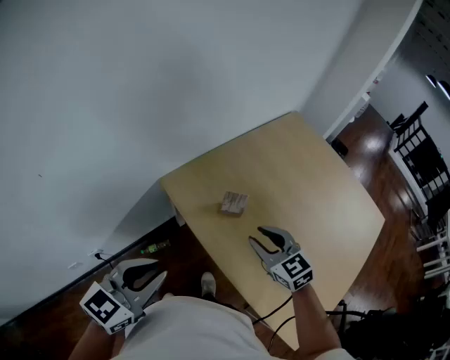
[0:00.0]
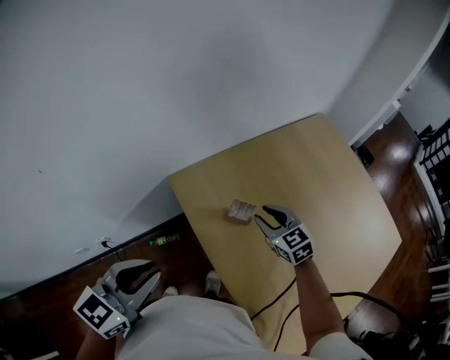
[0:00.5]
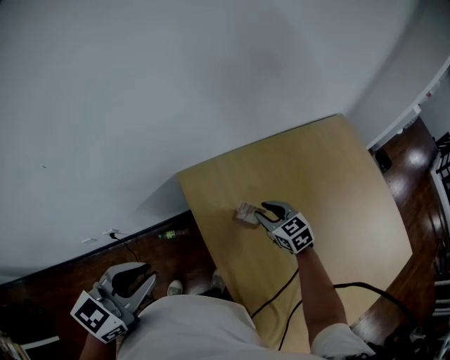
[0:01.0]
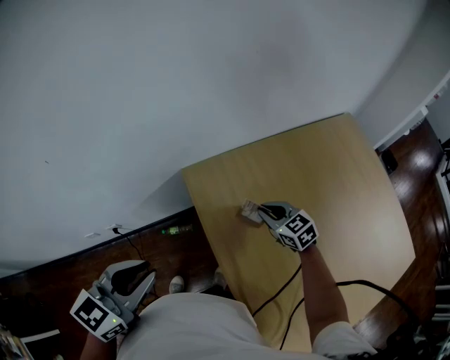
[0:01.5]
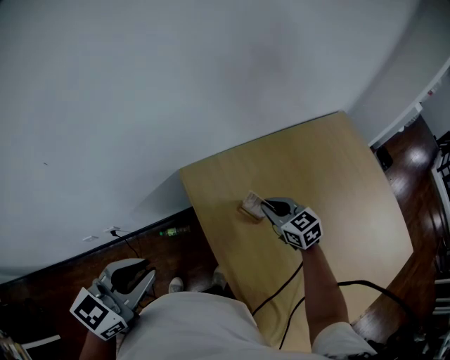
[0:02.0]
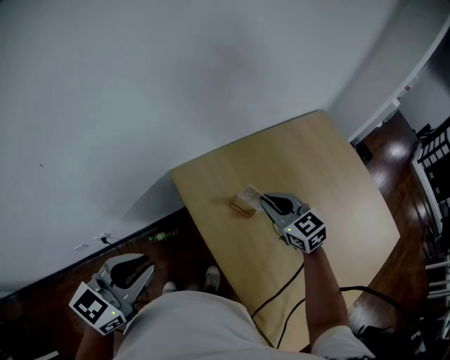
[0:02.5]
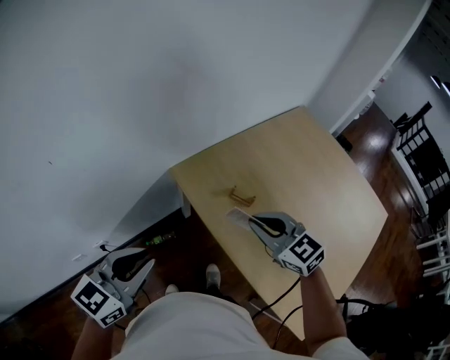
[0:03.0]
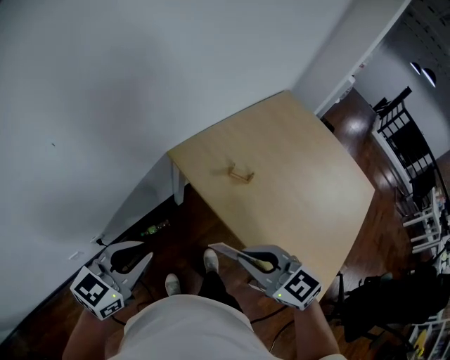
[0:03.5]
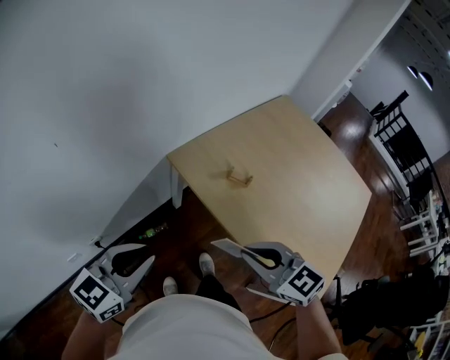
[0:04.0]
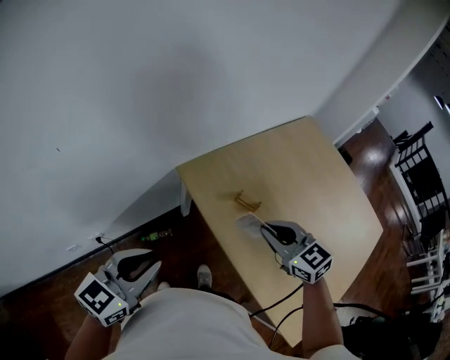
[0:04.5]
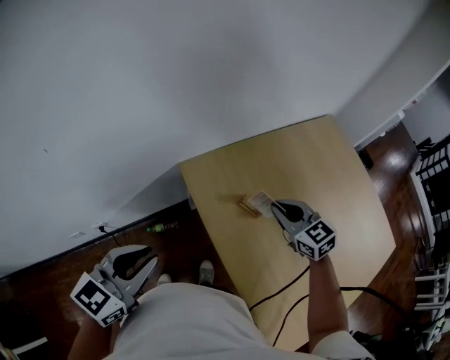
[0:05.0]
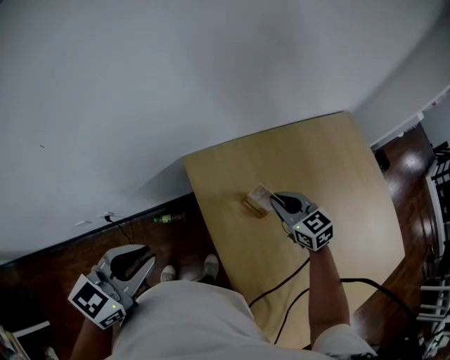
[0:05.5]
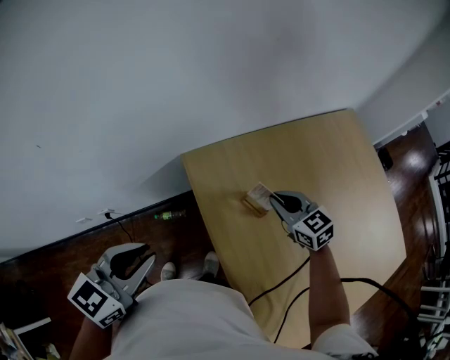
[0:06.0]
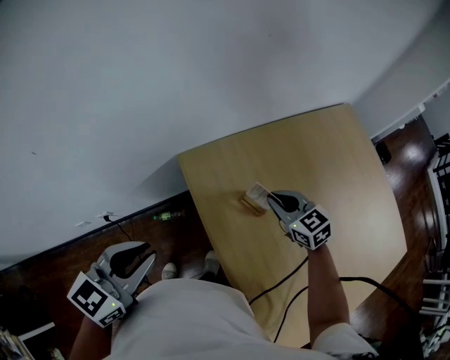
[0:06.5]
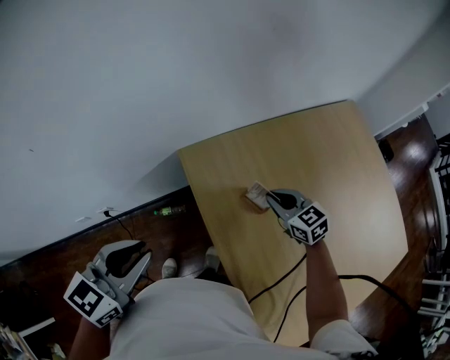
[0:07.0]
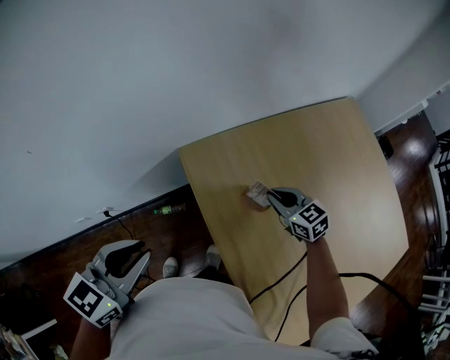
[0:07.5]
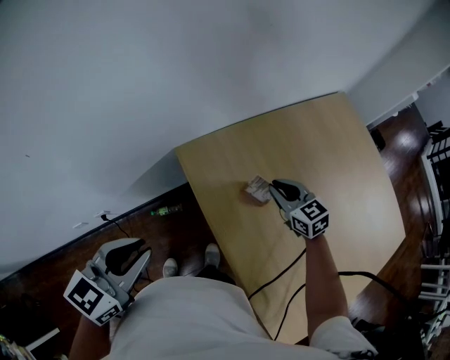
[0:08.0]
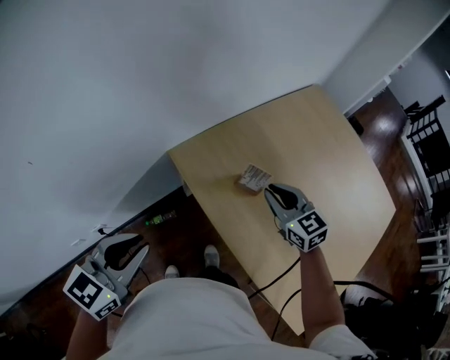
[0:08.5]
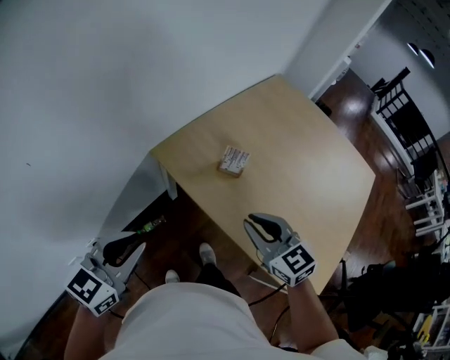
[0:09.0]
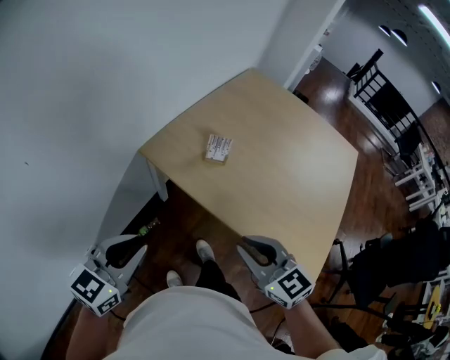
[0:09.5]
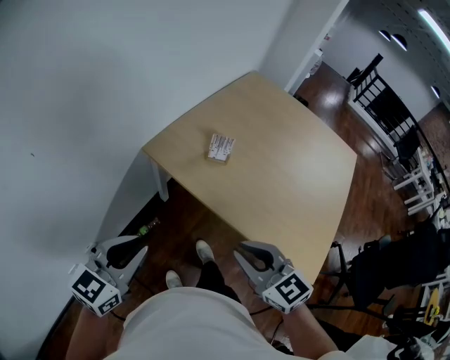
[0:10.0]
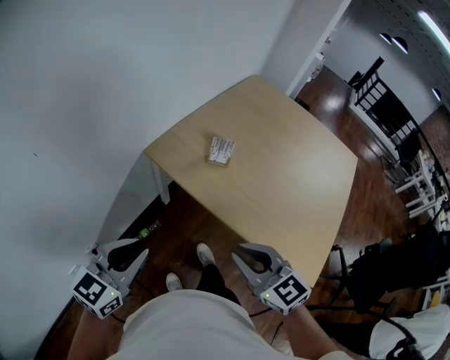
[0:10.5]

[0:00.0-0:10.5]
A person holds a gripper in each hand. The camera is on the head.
0:00.0 to 0:02.0: The right gripper goes approximately 20 cm forward and downward, and closes up.
0:02.0 to 0:04.0: The left gripper travels to the left and backward by approximately 15 cm, and turns by some 20 degrees; the right gripper travels backward, to the left and upward by roughly 40 cm.
0:04.0 to 0:06.5: The right gripper is displaced forward, to the right and downward by about 40 cm, while the left gripper travels to the right and forward by approximately 15 cm, and rotates some 20 degrees.
0:06.5 to 0:08.5: The left gripper shifts roughly 5 cm to the left. The right gripper moves backward and upward, roughly 10 cm.
0:08.5 to 0:10.5: The left gripper travels backward by approximately 10 cm, while the right gripper moves backward, some 35 cm.

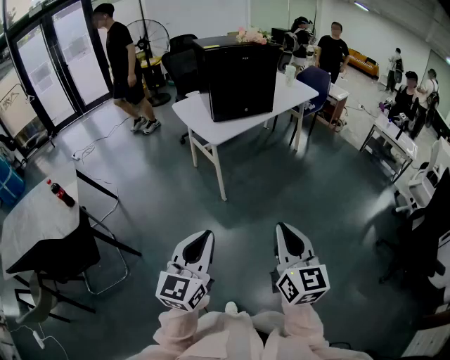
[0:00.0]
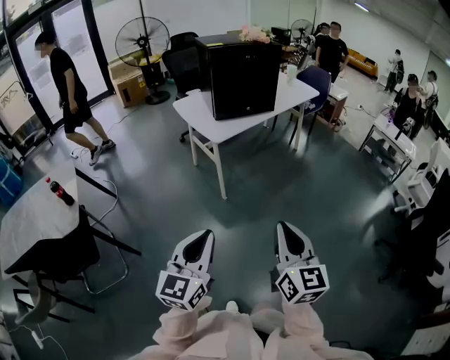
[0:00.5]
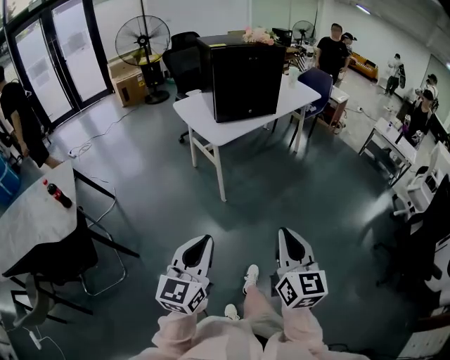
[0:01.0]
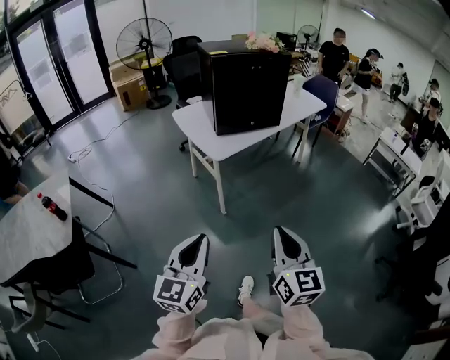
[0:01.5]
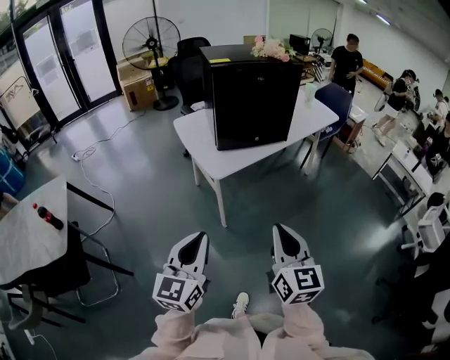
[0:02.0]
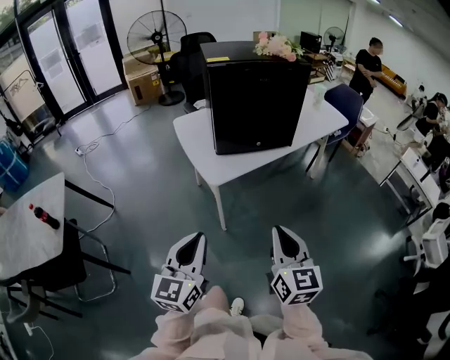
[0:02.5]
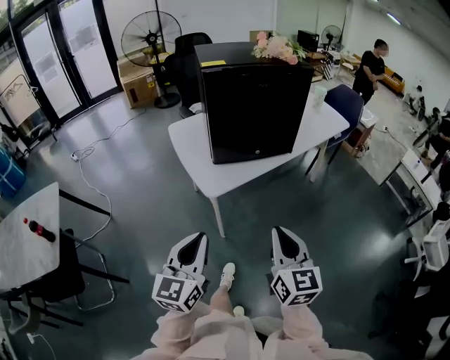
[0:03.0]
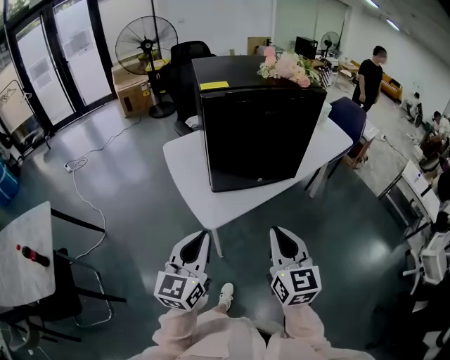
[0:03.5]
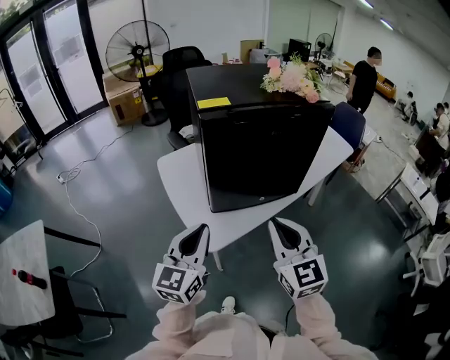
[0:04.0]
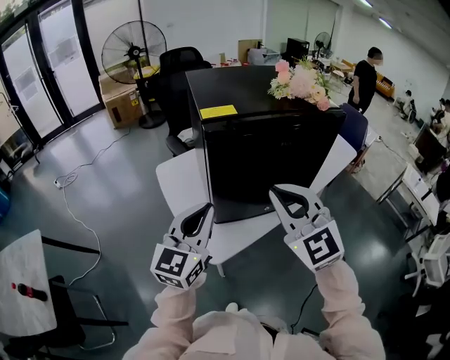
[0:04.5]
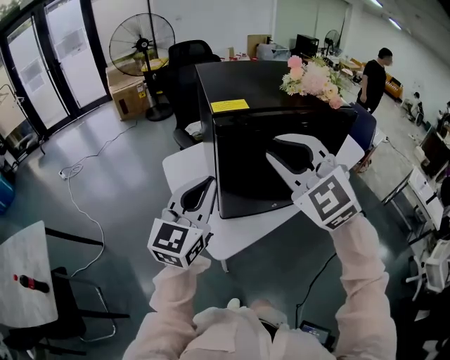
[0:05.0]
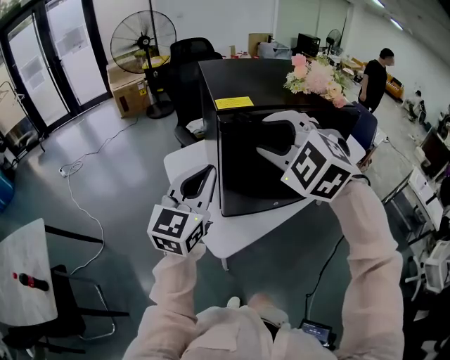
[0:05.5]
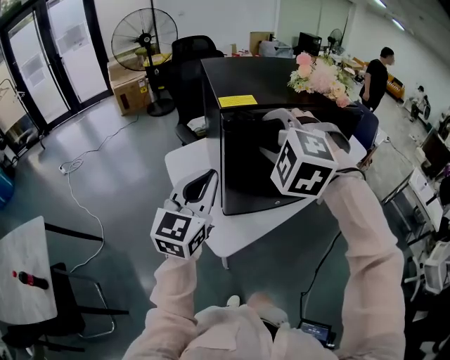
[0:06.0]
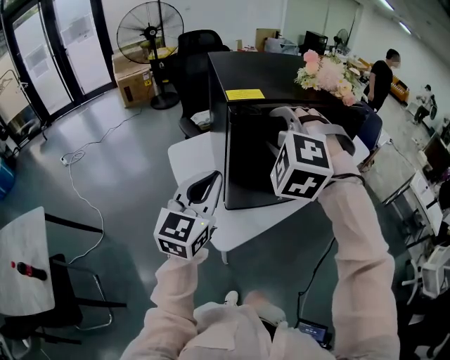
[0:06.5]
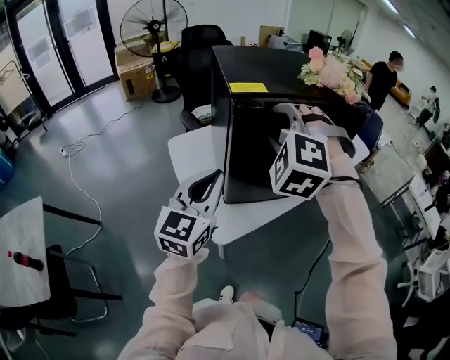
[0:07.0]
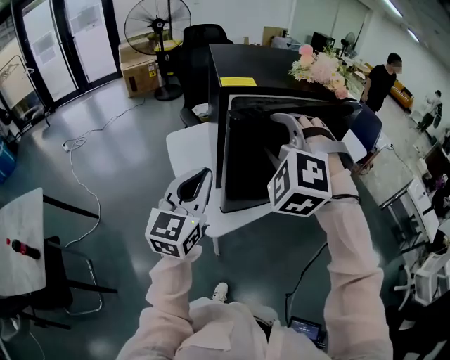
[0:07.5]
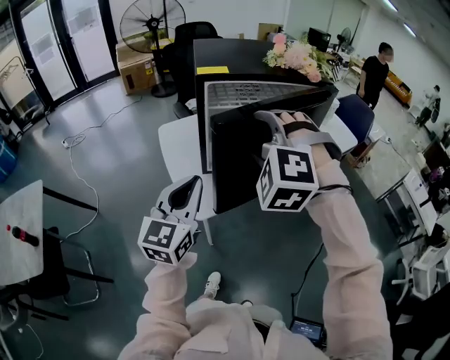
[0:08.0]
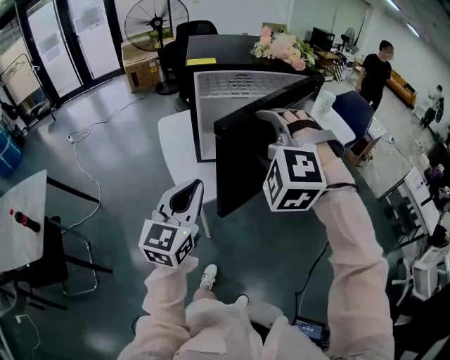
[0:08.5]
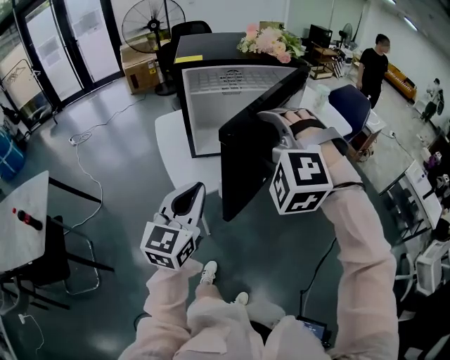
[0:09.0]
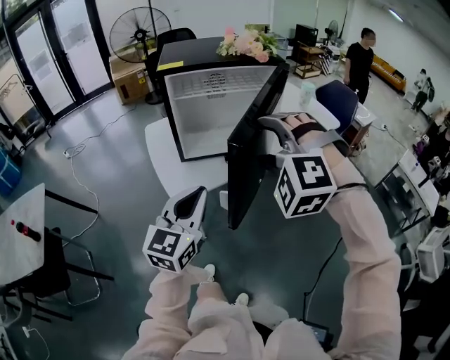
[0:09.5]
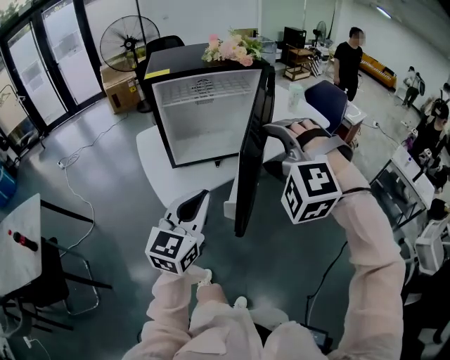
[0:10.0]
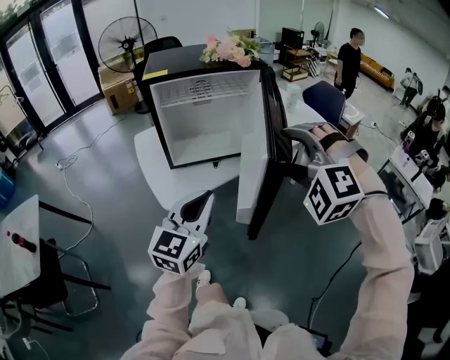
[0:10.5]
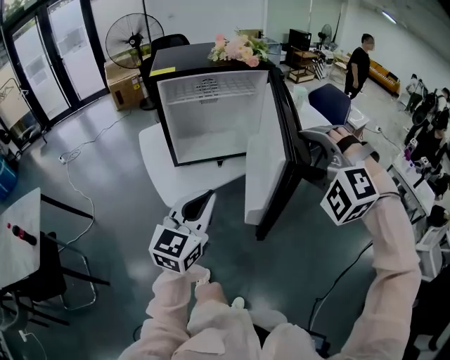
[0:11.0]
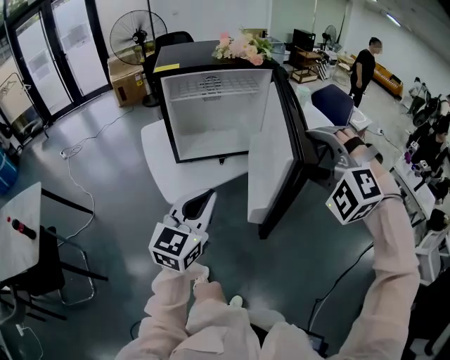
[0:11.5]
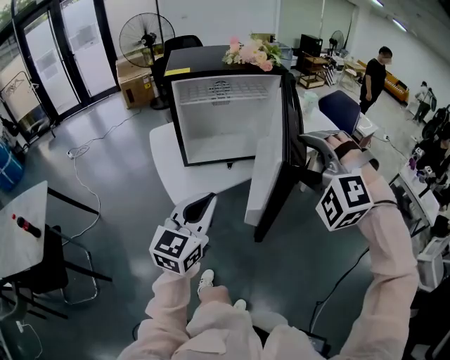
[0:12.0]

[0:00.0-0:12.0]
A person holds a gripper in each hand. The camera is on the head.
0:00.0 to 0:02.0: Both grippers move forward, about 25 cm.
0:02.0 to 0:04.0: Both grippers move forward, some 40 cm. The right gripper rotates approximately 20 degrees.
0:04.0 to 0:06.0: The right gripper travels forward, upward and to the left by some 25 cm, rotates around the line of its fingers by roughly 60 degrees, counterclockwise from behind, and opens up, while the left gripper heads forward and upward, covering roughly 15 cm.
0:06.0 to 0:08.0: Both grippers move backward and to the right, about 15 cm.
0:08.0 to 0:10.0: Both grippers travel together to the right and backward, some 20 cm.

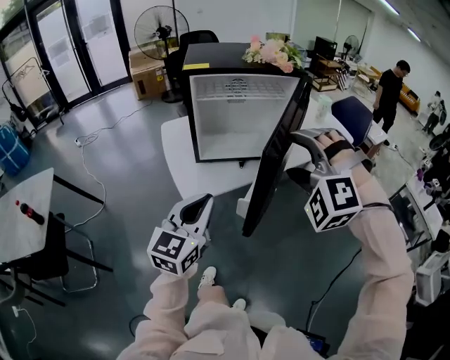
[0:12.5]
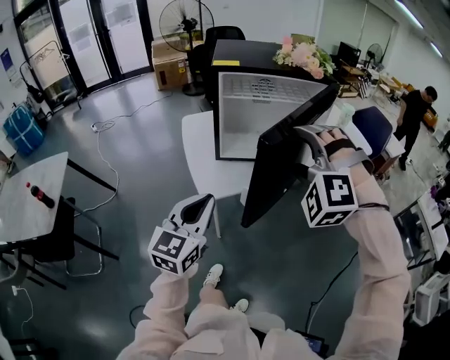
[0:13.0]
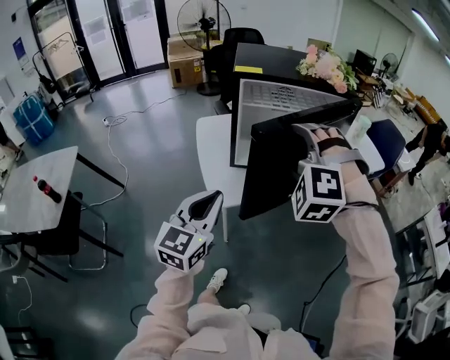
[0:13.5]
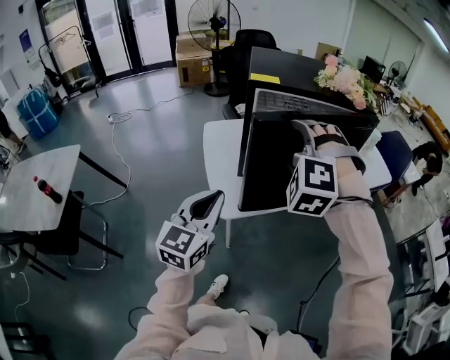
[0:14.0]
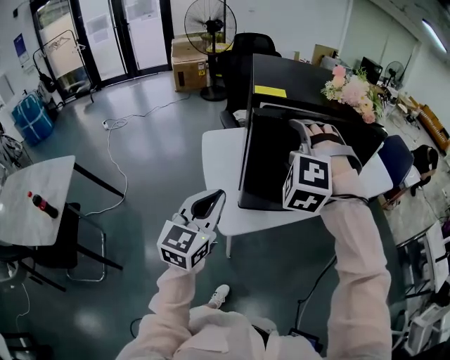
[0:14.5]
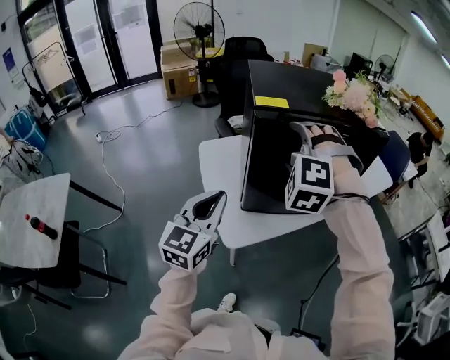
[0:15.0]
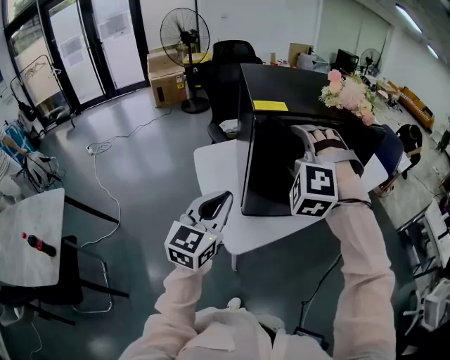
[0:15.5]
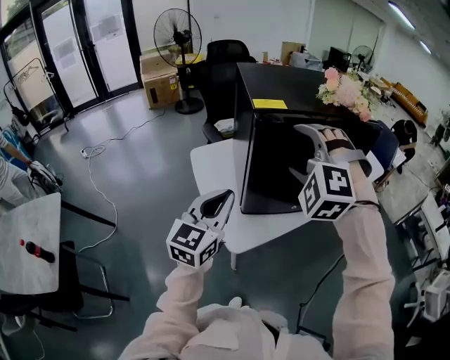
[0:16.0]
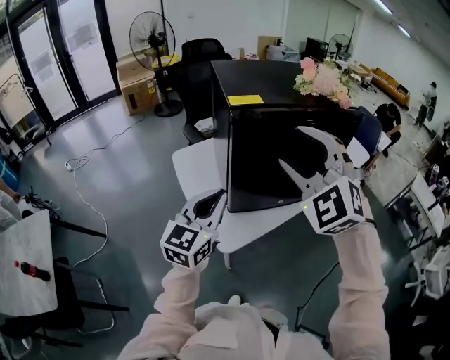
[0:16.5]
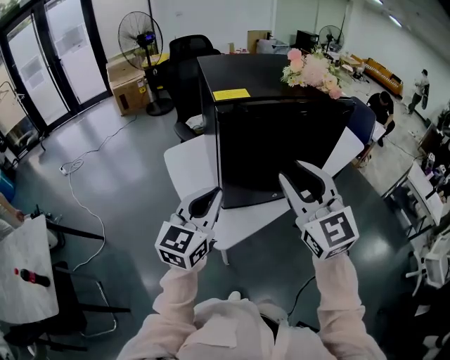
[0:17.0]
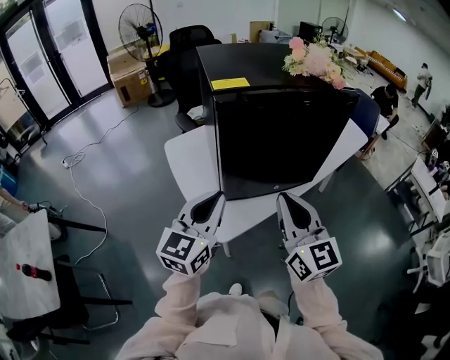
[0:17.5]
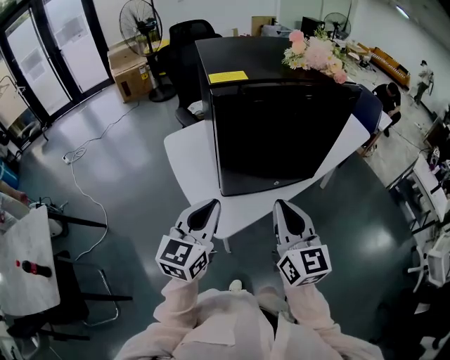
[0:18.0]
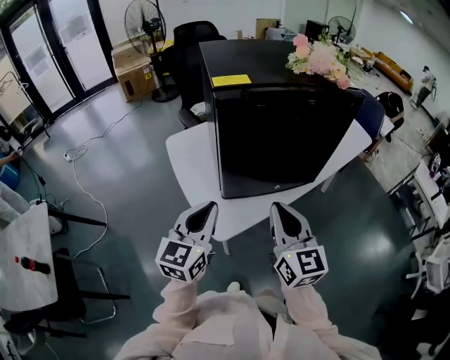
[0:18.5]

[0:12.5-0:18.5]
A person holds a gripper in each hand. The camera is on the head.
0:12.5 to 0:14.5: The grippers both shift to the left and forward by roughly 25 cm.
0:14.5 to 0:16.5: The left gripper travels forward by some 10 cm, while the right gripper moves upward, roughly 5 cm, and turns by roughly 30 degrees.
0:16.5 to 0:18.5: The left gripper shifts some 5 cm downward, while the right gripper travels downward and backward by approximately 20 cm, rolls clockwise, seen from behind, by some 70 degrees, and closes up.
